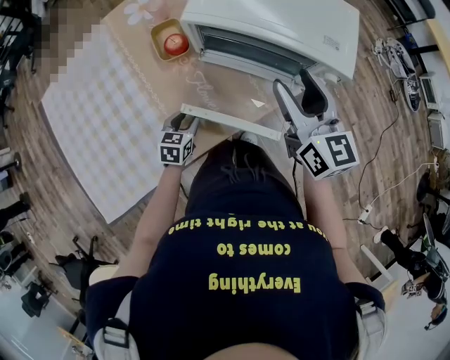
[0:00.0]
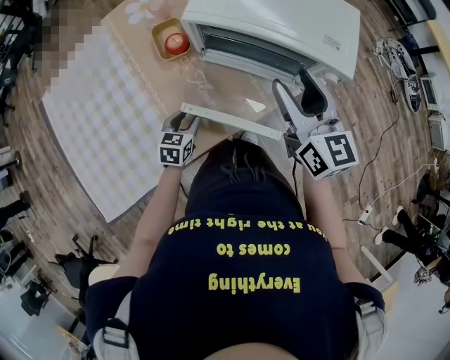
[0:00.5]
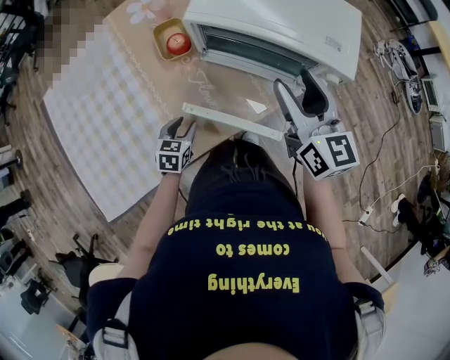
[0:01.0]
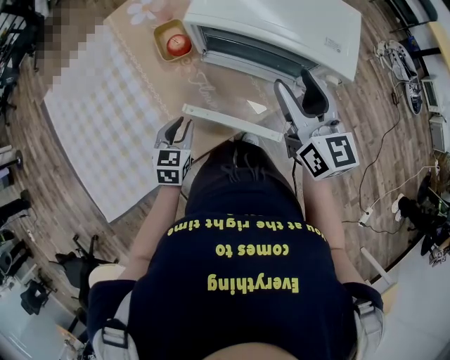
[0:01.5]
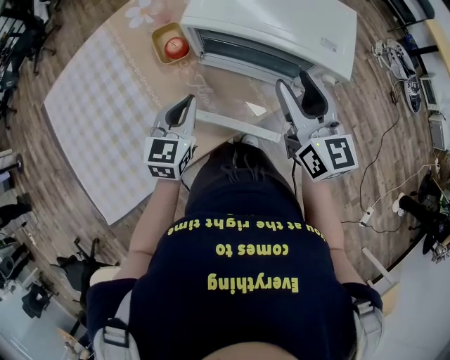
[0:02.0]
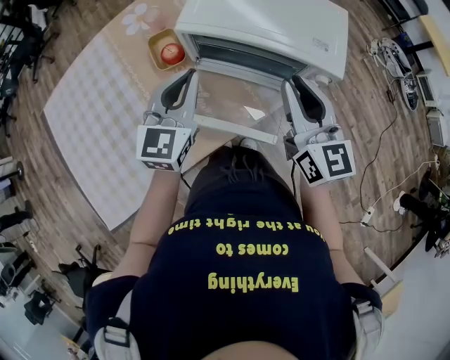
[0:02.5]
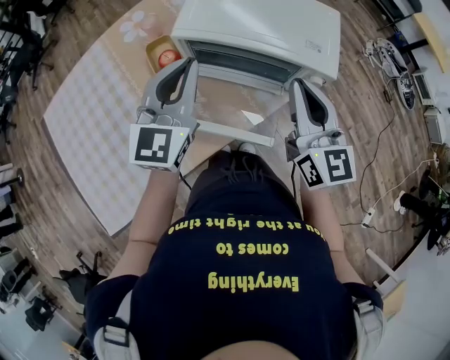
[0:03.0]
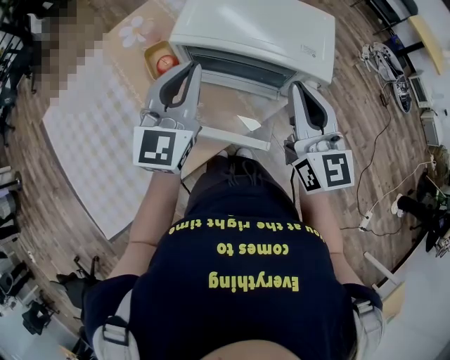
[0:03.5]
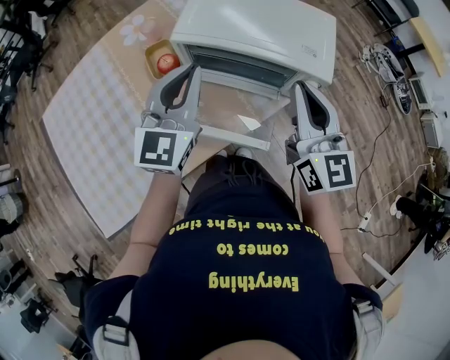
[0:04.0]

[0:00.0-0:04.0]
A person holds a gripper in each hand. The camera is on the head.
0:00.0 to 0:02.0: The left gripper moves upward, some 20 cm, turns by roughly 20 degrees, and closes.
0:02.0 to 0:04.0: The left gripper travels upward by approximately 15 cm, and rotates roughly 20 degrees. Meanwhile the right gripper travels upward by roughly 5 cm, and closes up.

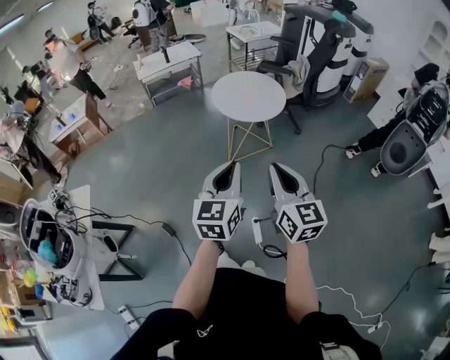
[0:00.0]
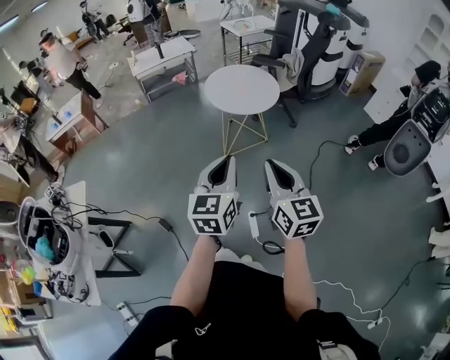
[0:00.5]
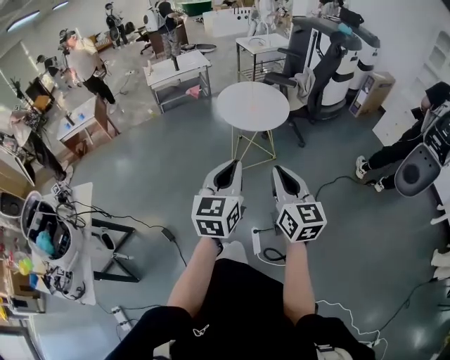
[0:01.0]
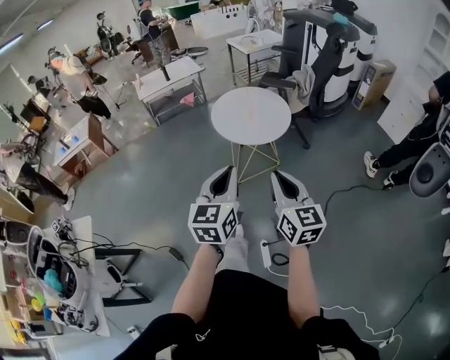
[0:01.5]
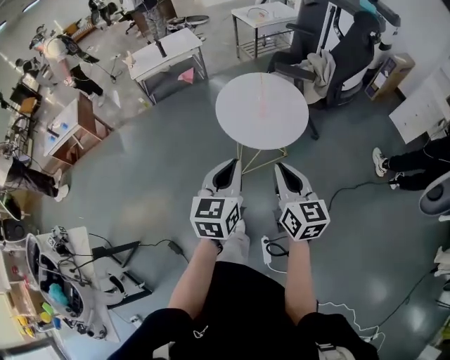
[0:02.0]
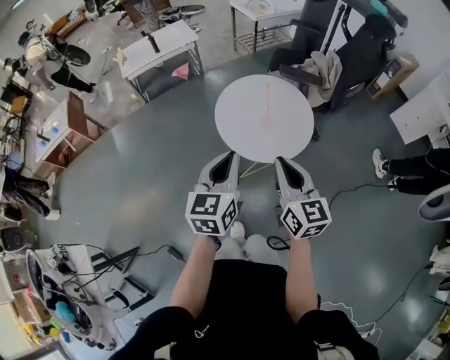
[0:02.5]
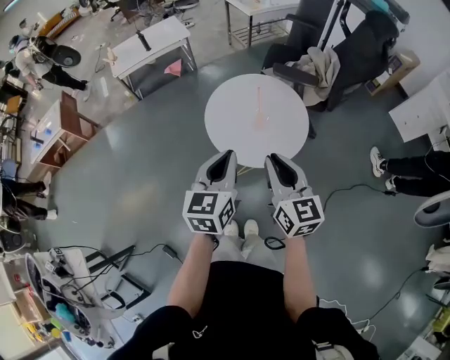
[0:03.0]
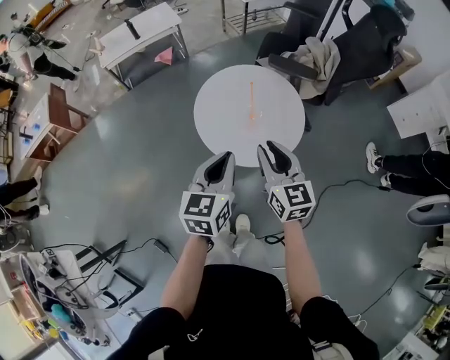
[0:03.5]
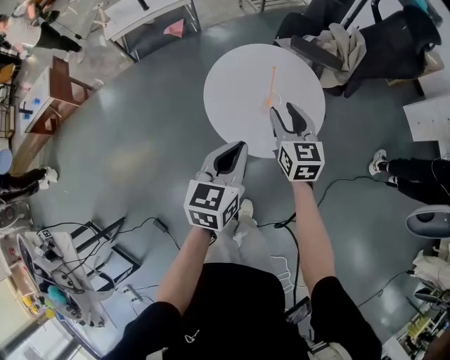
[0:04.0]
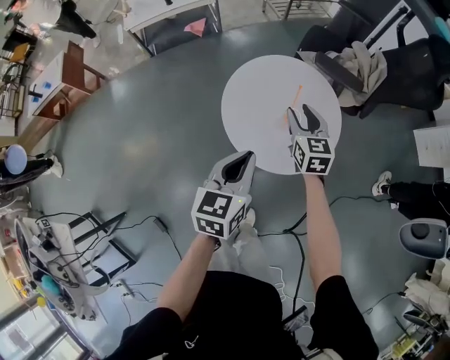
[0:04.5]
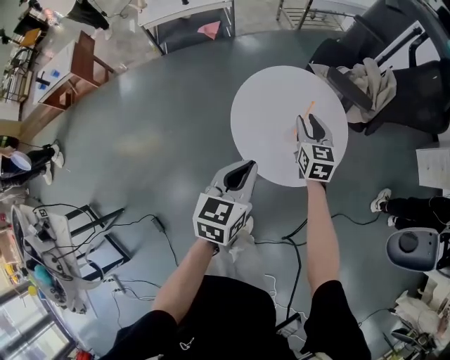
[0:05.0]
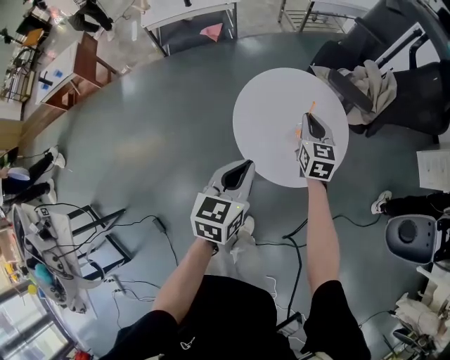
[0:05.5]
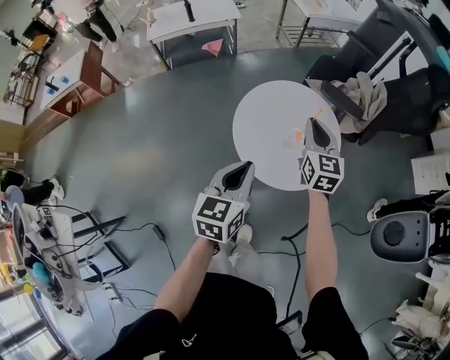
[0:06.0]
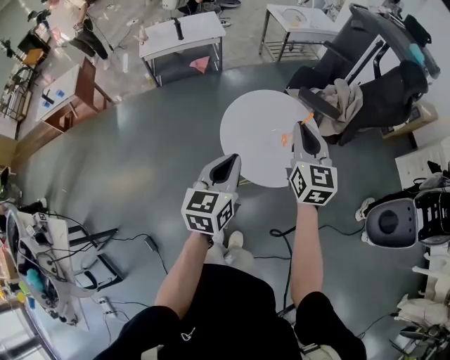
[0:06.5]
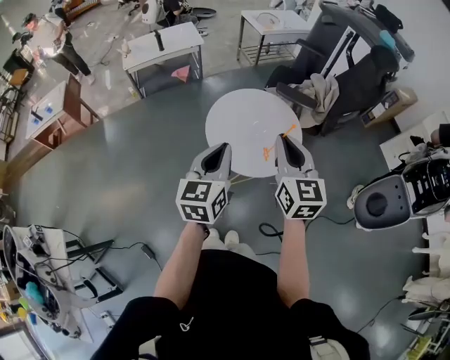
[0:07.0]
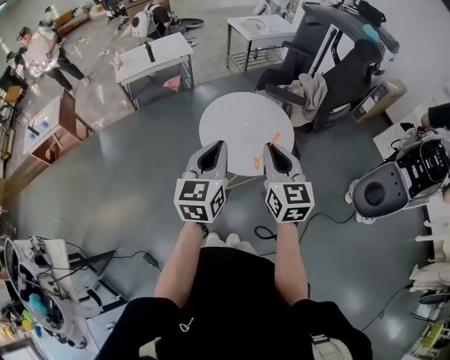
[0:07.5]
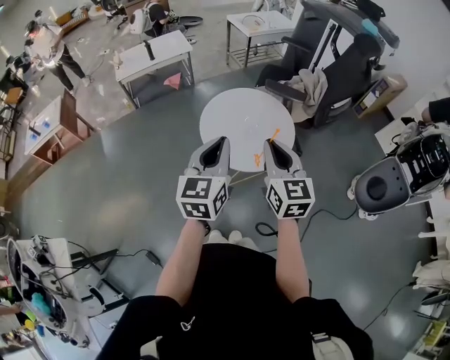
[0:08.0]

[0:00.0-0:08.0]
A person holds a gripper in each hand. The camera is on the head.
0:00.0 to 0:02.0: The grippers both shift forward by approximately 30 cm.
0:02.0 to 0:04.0: The left gripper goes some 25 cm forward and downward, while the right gripper heads forward, covering roughly 35 cm, and opens up.
0:04.0 to 0:06.0: The left gripper ends up some 5 cm from where it was, while the right gripper shifts about 10 cm forward and upward, and closes its fingers.
0:06.0 to 0:08.0: The right gripper is displaced backward and upward by some 25 cm, while the left gripper goes some 15 cm upward and backward.

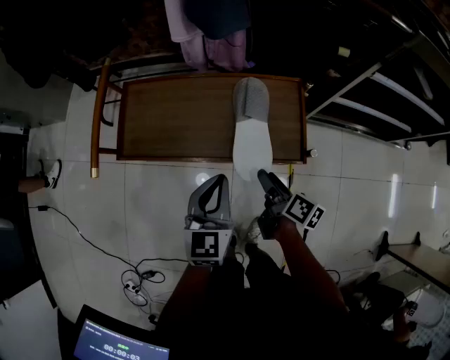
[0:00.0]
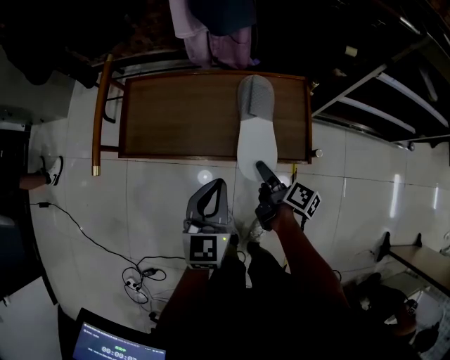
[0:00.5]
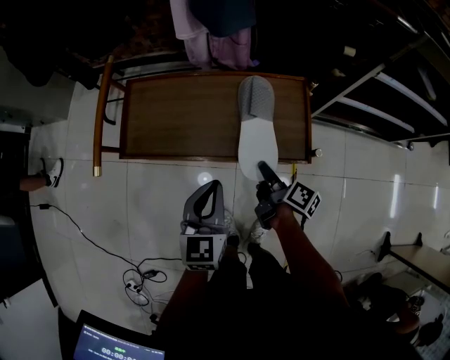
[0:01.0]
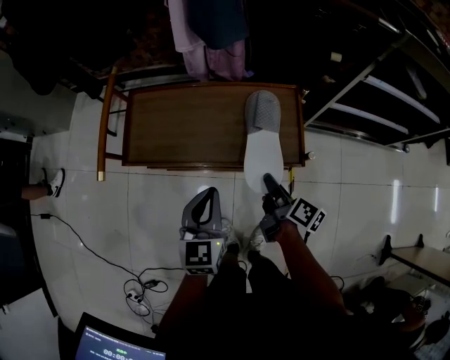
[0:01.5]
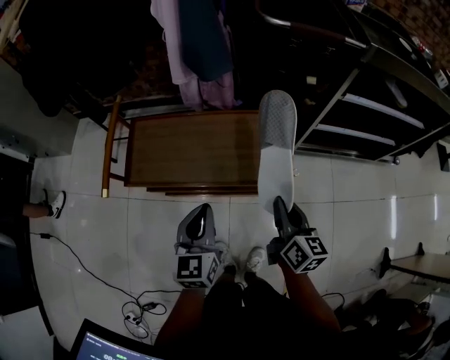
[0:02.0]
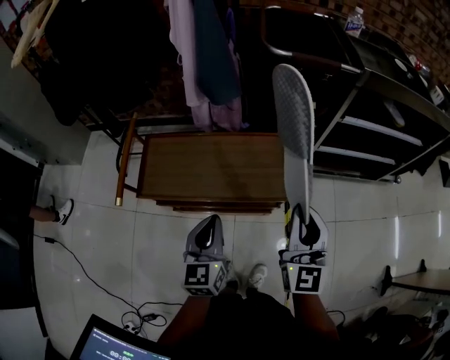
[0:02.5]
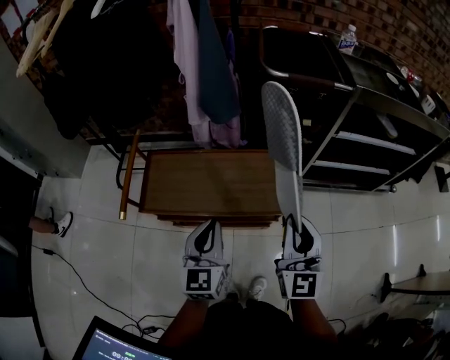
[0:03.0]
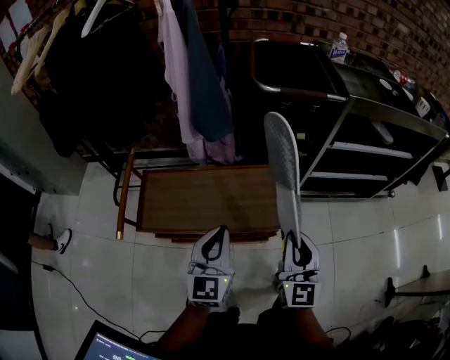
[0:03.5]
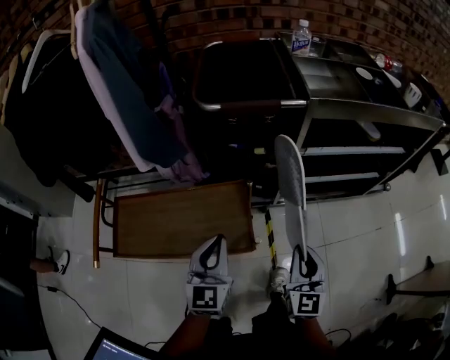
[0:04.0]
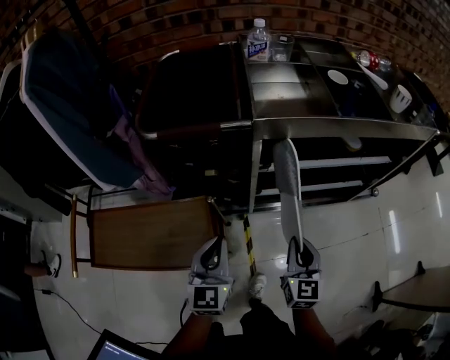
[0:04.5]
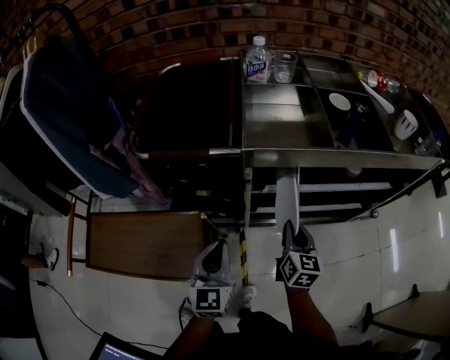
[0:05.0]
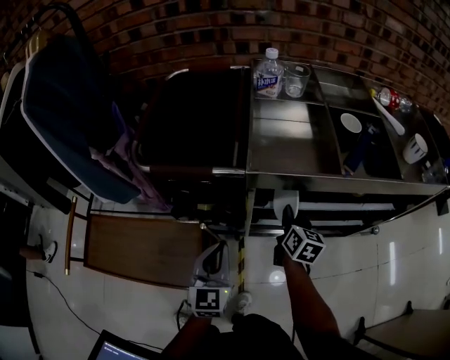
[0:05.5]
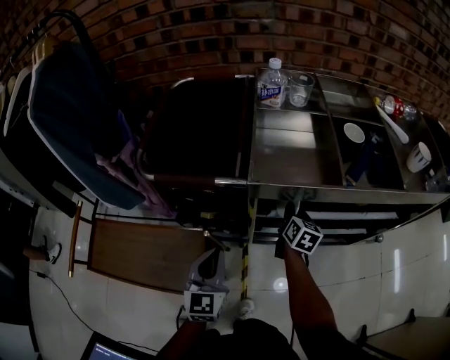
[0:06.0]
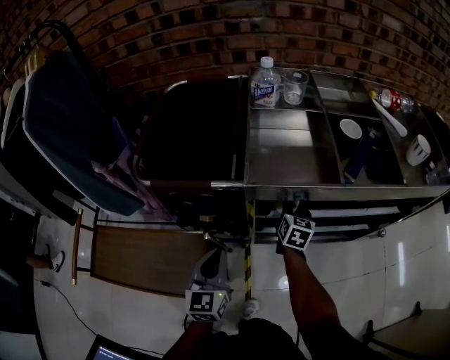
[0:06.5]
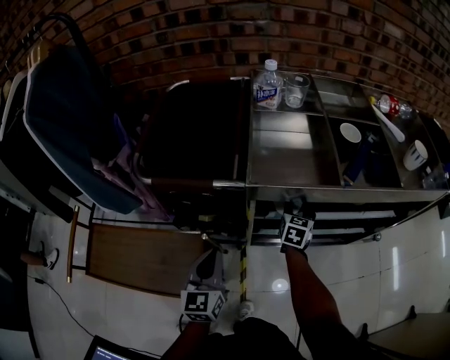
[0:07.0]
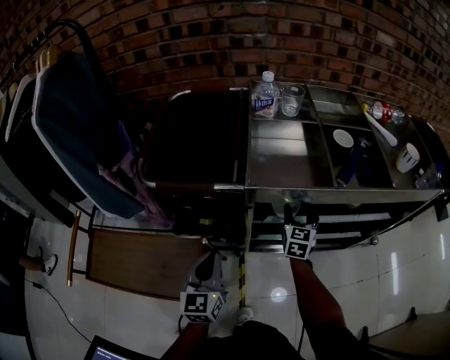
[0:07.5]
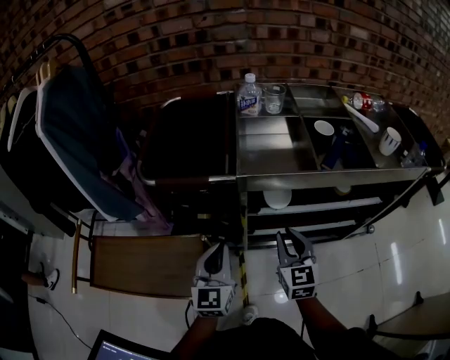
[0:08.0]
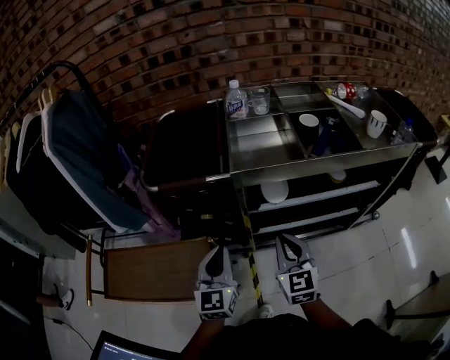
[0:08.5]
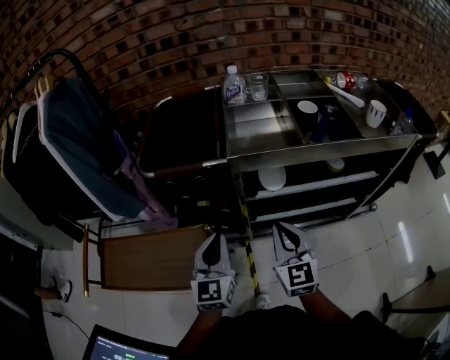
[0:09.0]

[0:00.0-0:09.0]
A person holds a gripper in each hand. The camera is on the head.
0:00.0 to 0:02.0: The right gripper travels upward by some 15 cm, turns by some 40 degrees, and closes, while the left gripper moves roughly 5 cm.
0:02.0 to 0:04.5: The grippers both shift to the right and forward by about 35 cm. The right gripper turns by about 30 degrees.
0:04.5 to 0:07.0: The left gripper moves forward, some 10 cm; the right gripper is displaced forward by approximately 30 cm, and opens up.
0:07.0 to 0:09.0: The right gripper shifts approximately 30 cm backward and upward, rotates about 30 degrees, and closes, while the left gripper goes roughly 10 cm upward and backward.

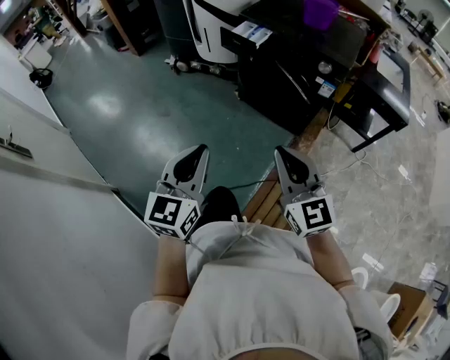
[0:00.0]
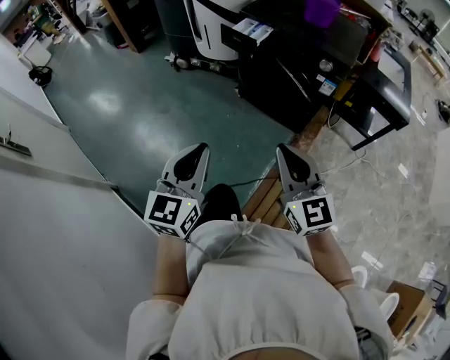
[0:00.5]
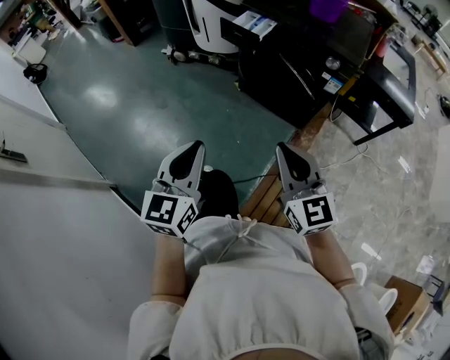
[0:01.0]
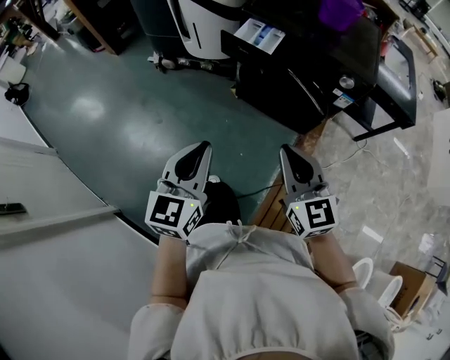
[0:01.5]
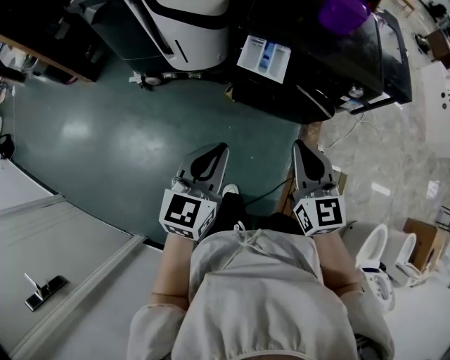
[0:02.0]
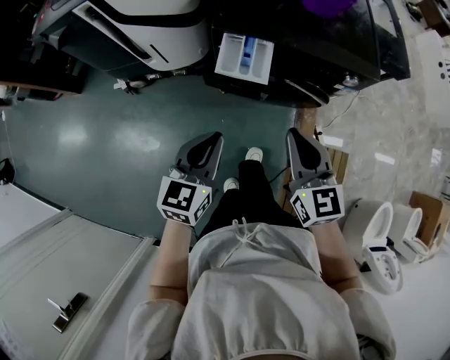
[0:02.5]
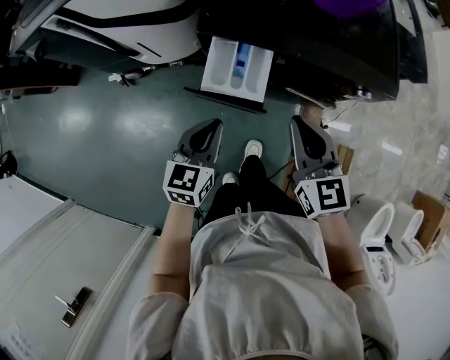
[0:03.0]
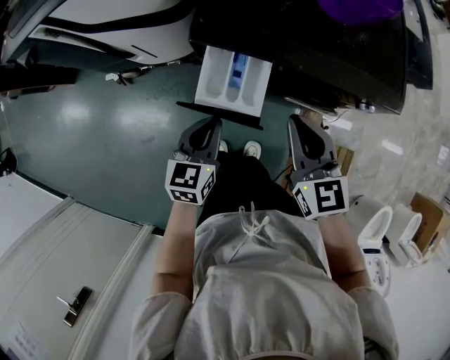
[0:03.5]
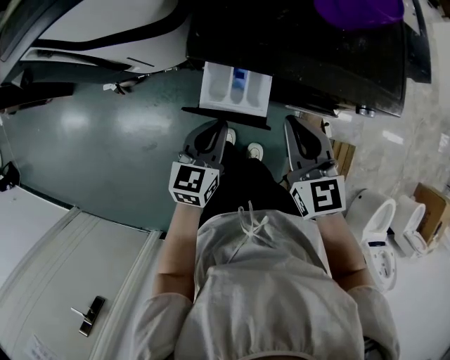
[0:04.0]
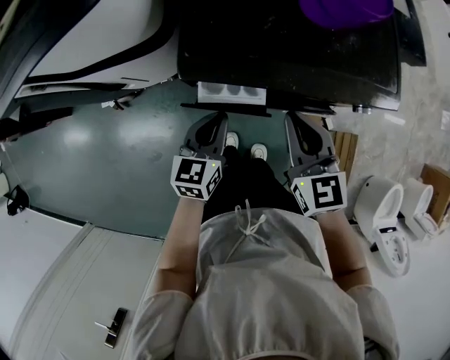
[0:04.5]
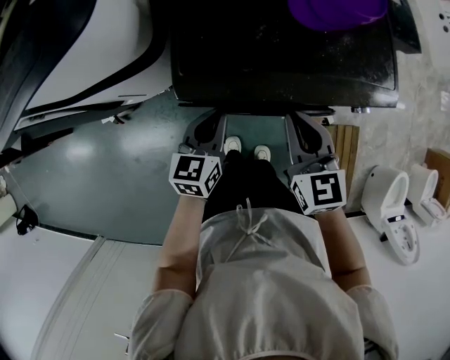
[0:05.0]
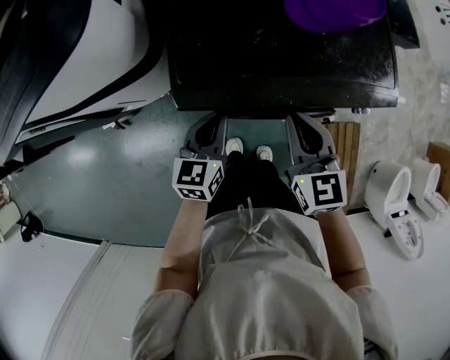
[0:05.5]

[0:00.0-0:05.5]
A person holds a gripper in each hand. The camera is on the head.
0:00.0 to 0:02.0: The right gripper ends up about 35 cm from where it was, and turns by approximately 30 degrees, while the left gripper changes place by some 40 cm, and swivels roughly 30 degrees.
0:02.0 to 0:03.5: Both grippers travel together forward and downward, roughly 25 cm.
0:03.5 to 0:05.5: The grippers both shift forward by roughly 10 cm.
